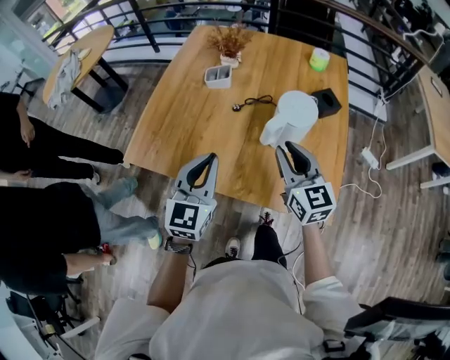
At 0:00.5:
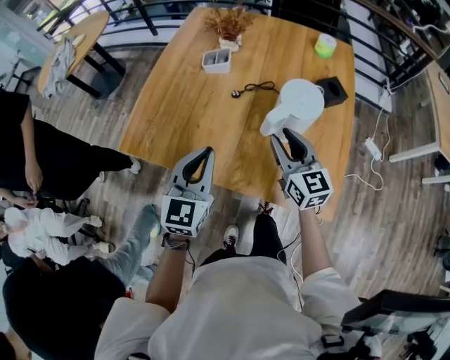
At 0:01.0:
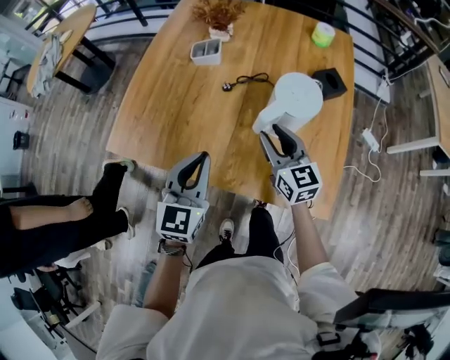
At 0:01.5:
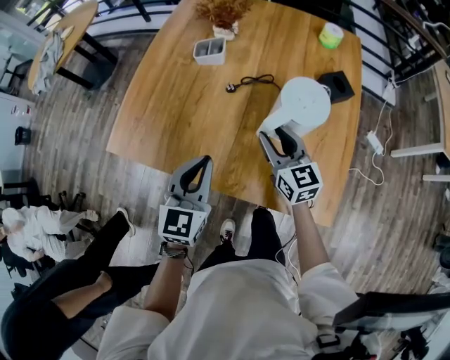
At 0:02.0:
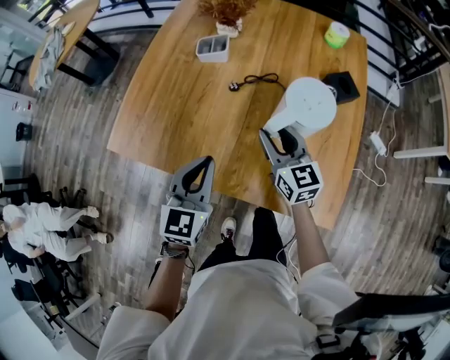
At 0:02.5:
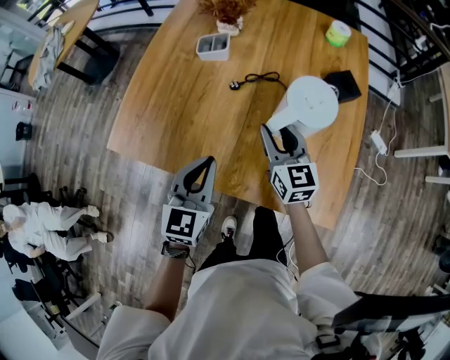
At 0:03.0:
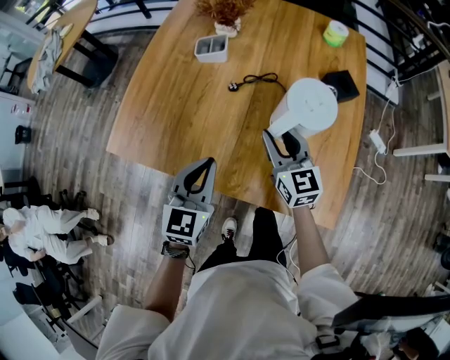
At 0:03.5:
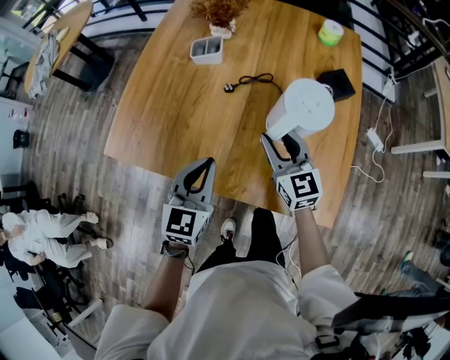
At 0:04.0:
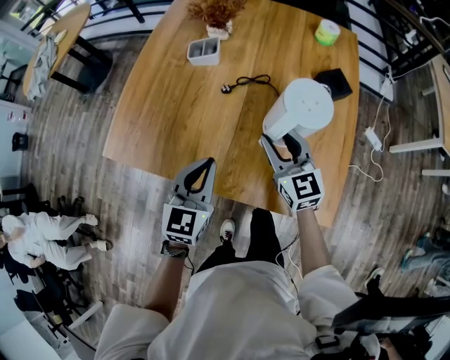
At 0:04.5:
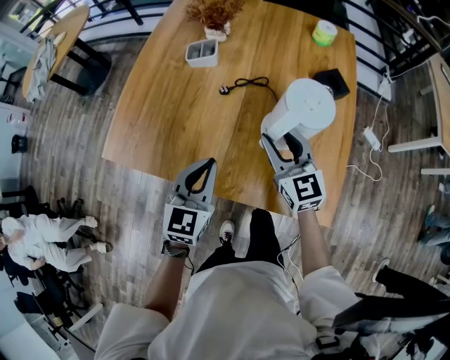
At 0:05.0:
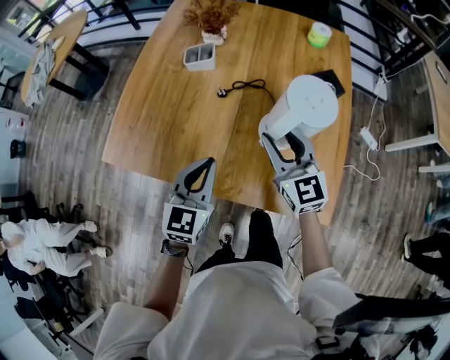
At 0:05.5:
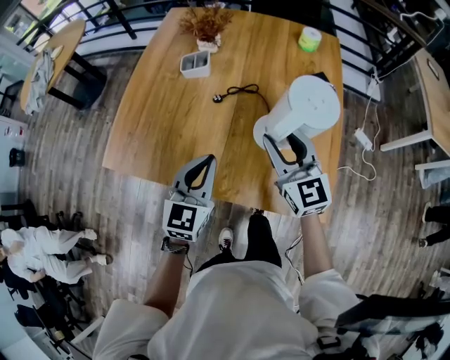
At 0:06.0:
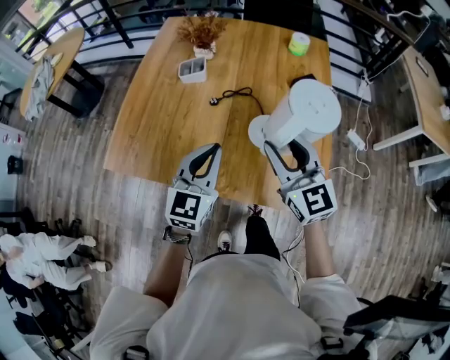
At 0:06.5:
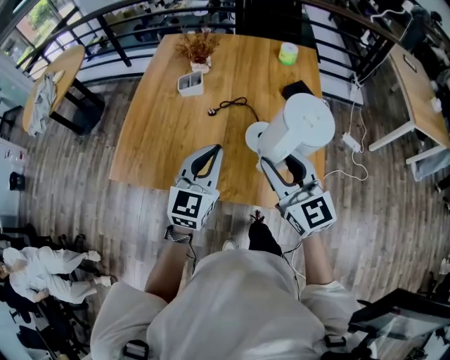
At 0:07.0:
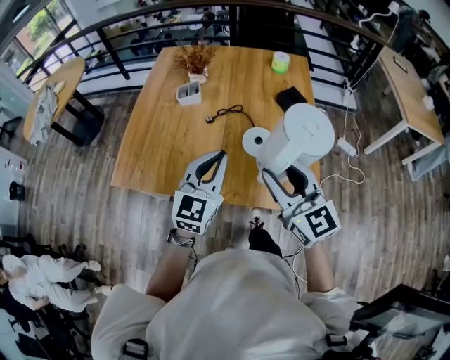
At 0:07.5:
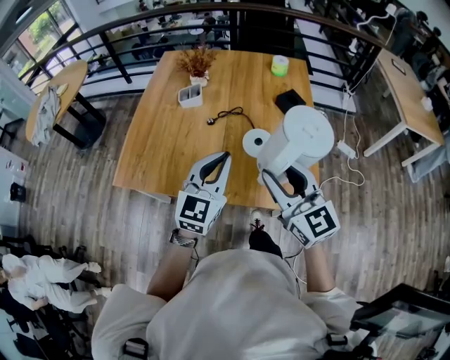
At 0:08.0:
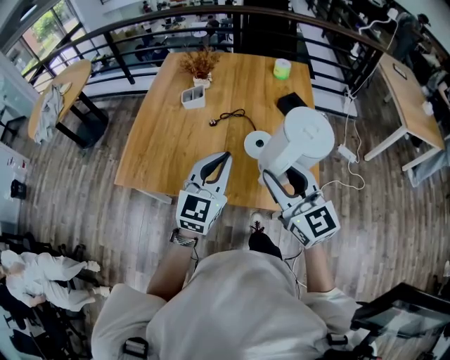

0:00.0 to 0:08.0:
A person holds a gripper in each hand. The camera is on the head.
0:00.0 to 0:02.0: The right gripper moves downward and forward, approximately 15 cm, while the left gripper moves downward, about 10 cm.
0:02.0 to 0:04.0: The grippers stay close to where they were, moving slightly.
0:04.0 to 0:06.0: The left gripper shifts some 10 cm upward, while the right gripper travels upward and backward by approximately 15 cm.
0:06.0 to 0:08.0: Both grippers move backward and upward, roughly 10 cm.

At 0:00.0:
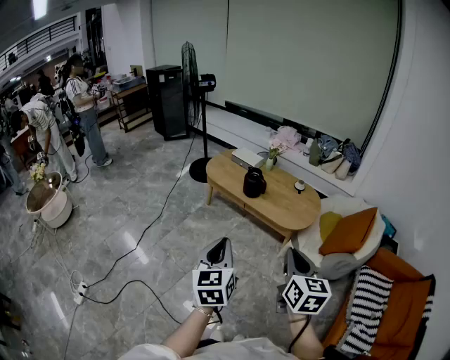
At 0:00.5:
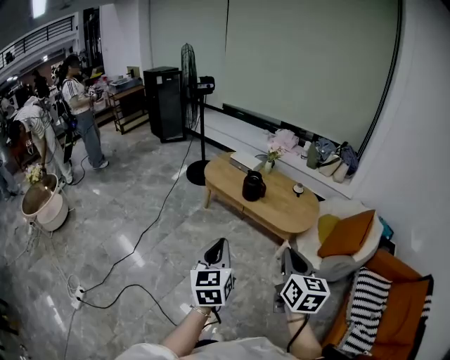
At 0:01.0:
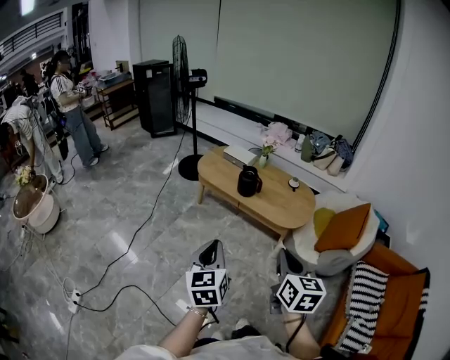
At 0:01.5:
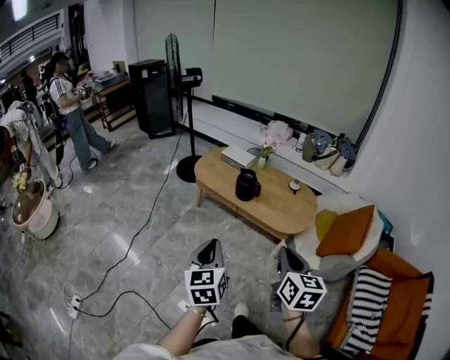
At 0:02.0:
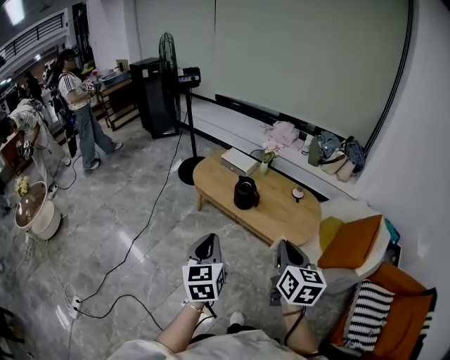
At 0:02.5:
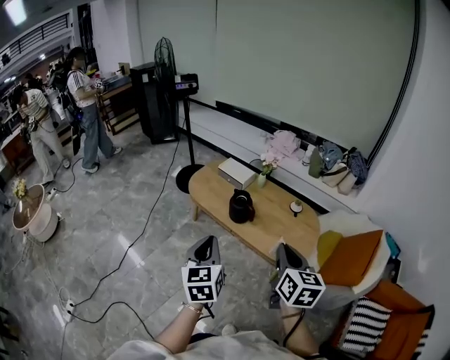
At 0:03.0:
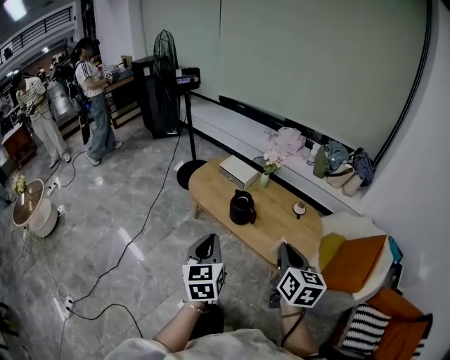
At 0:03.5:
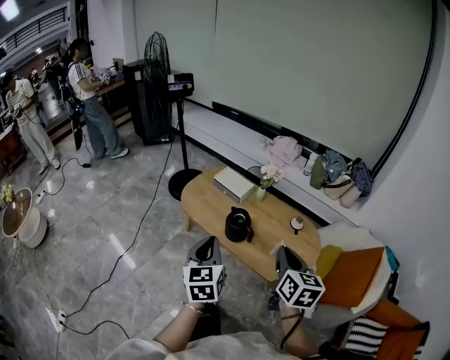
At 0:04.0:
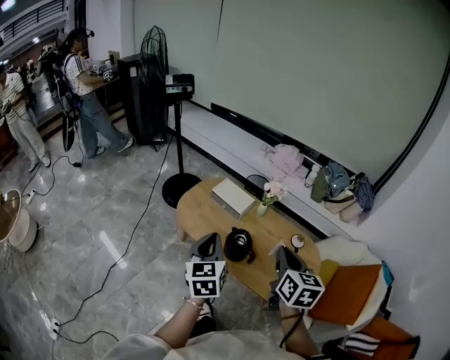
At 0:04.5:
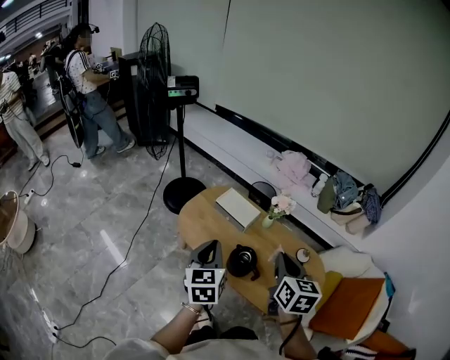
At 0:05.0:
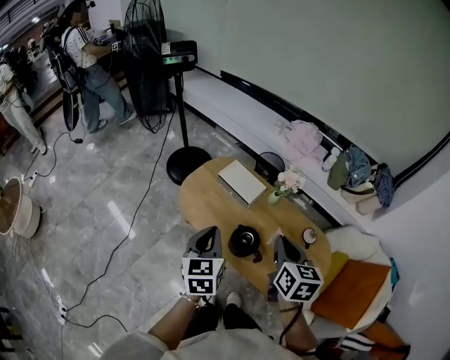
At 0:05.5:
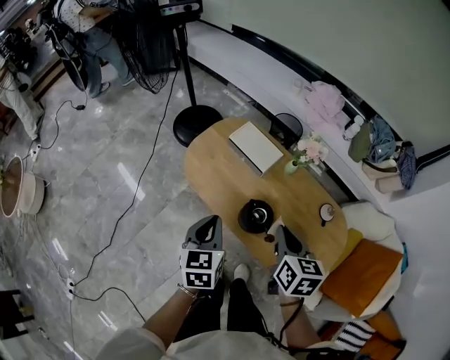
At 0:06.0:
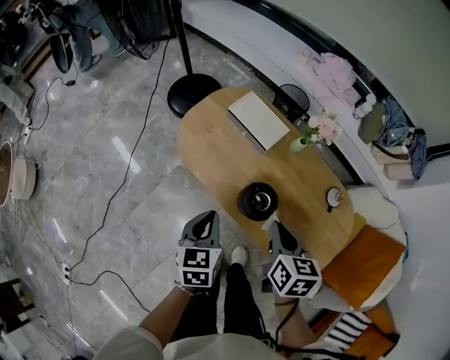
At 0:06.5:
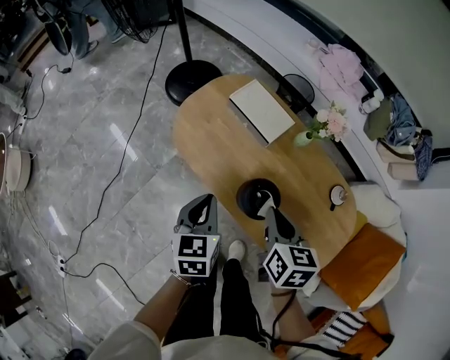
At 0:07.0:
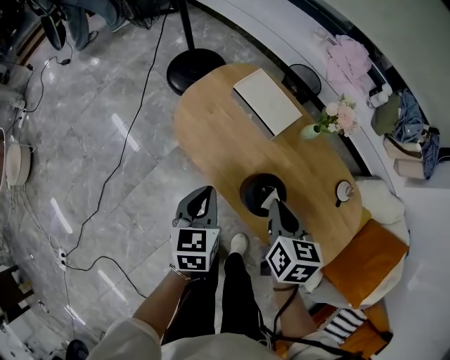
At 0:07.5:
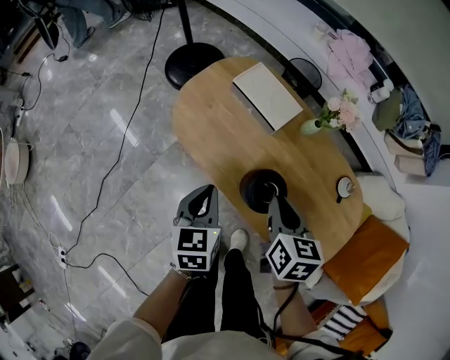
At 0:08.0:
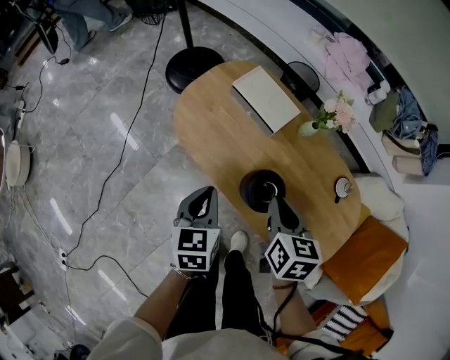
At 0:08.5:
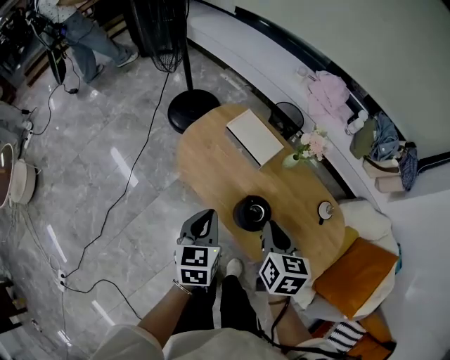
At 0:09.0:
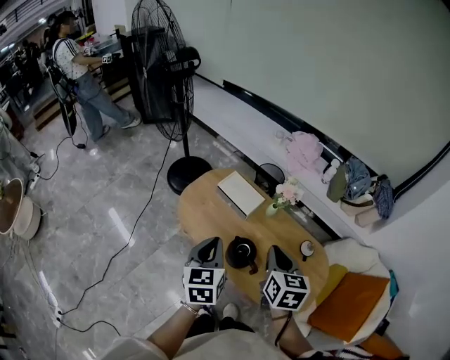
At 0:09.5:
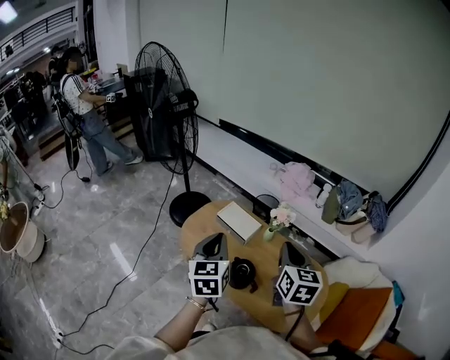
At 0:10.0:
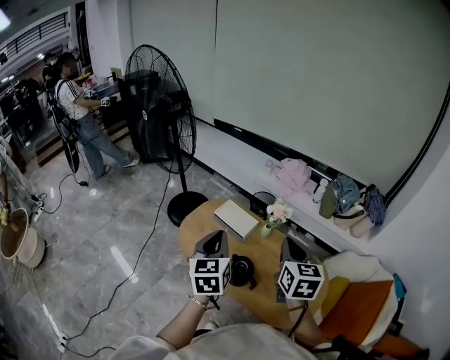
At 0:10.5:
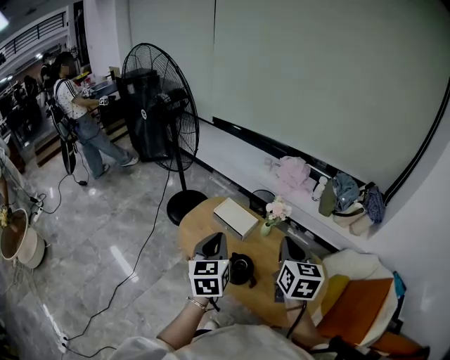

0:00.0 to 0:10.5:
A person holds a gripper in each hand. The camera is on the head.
0:00.0 to 0:02.0: Both grippers move forward, approximately 20 cm.
0:02.0 to 0:04.0: The grippers both shift forward by approximately 30 cm.
0:04.0 to 0:06.5: The left gripper shifts roughly 20 cm downward, and rotates about 20 degrees, while the right gripper travels downward and forward by some 25 cm, and rotates some 20 degrees.
0:06.5 to 0:08.5: The left gripper moves upward, roughly 5 cm.
0:08.5 to 0:10.5: The right gripper moves upward and to the right, some 20 cm, and changes its angle by roughly 20 degrees, while the left gripper moves upward, roughly 20 cm.

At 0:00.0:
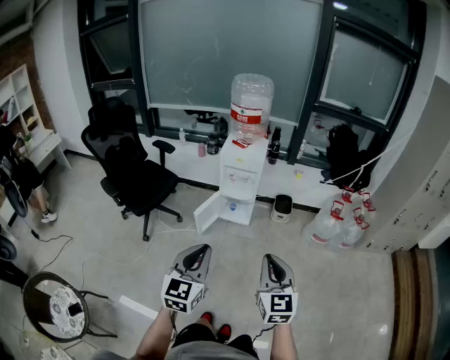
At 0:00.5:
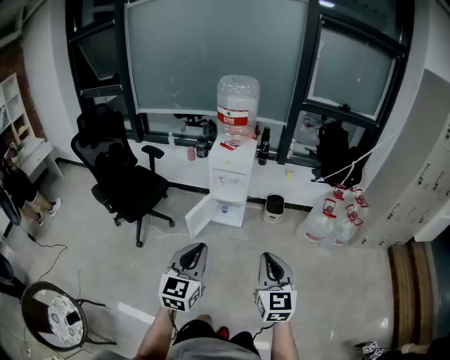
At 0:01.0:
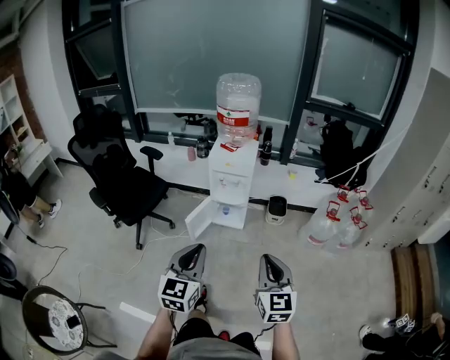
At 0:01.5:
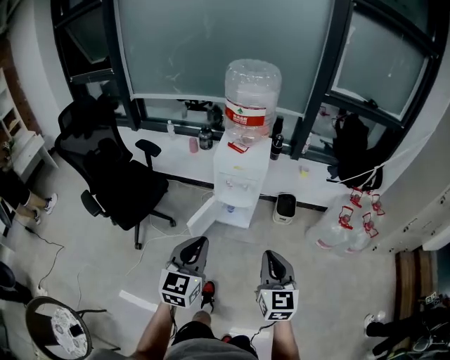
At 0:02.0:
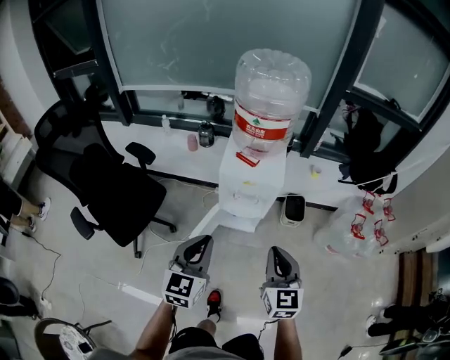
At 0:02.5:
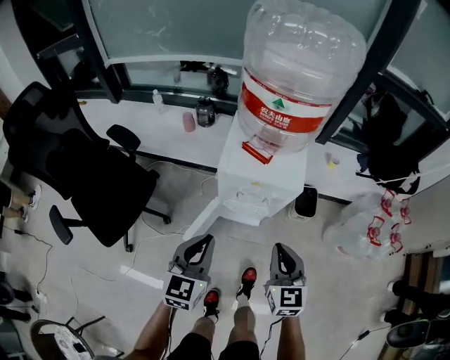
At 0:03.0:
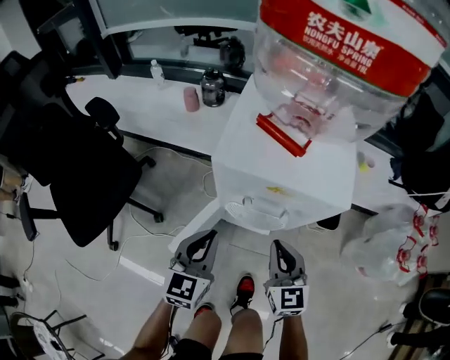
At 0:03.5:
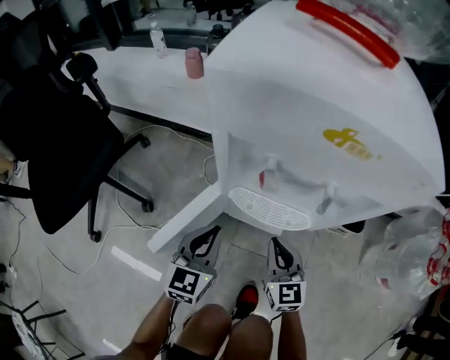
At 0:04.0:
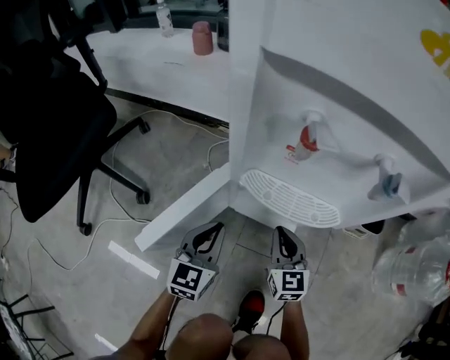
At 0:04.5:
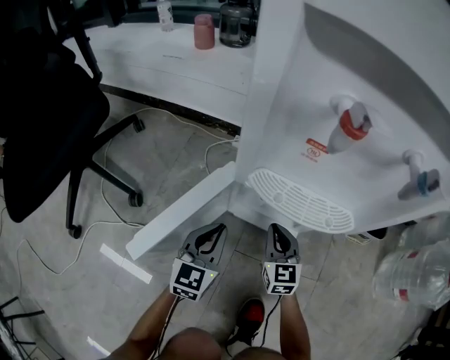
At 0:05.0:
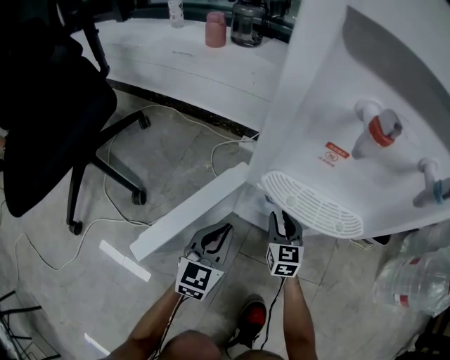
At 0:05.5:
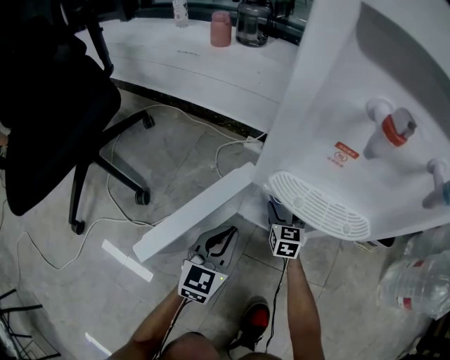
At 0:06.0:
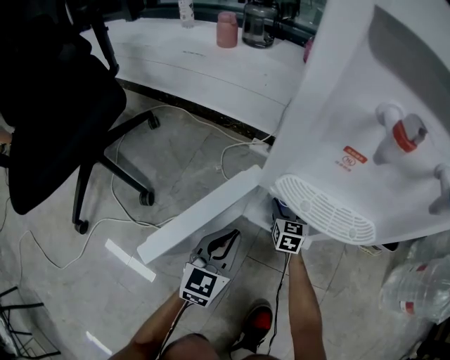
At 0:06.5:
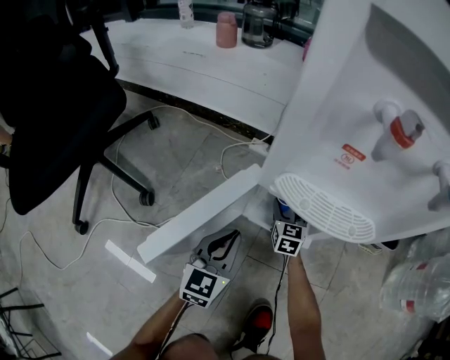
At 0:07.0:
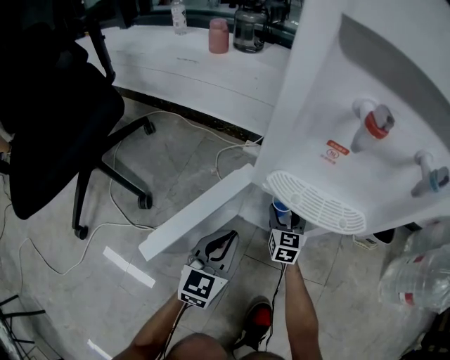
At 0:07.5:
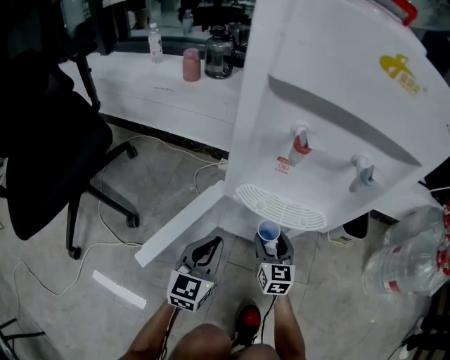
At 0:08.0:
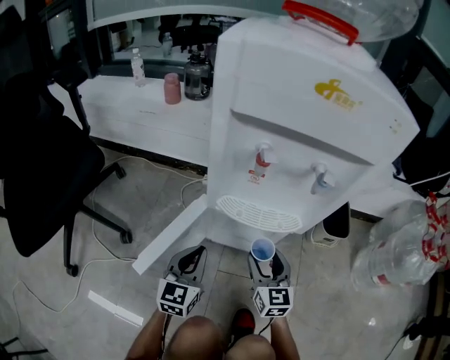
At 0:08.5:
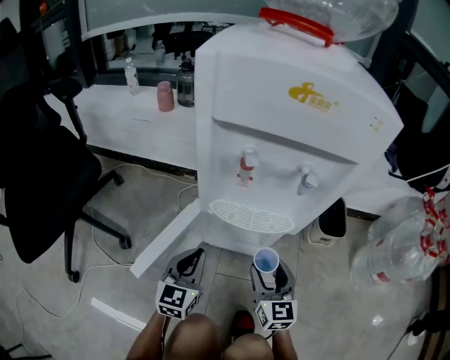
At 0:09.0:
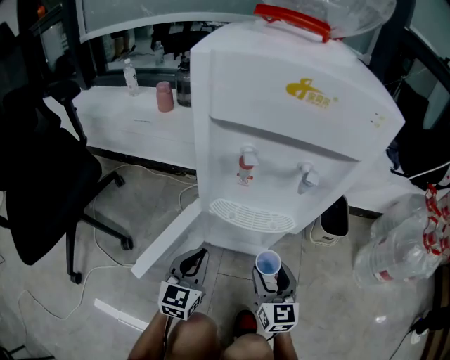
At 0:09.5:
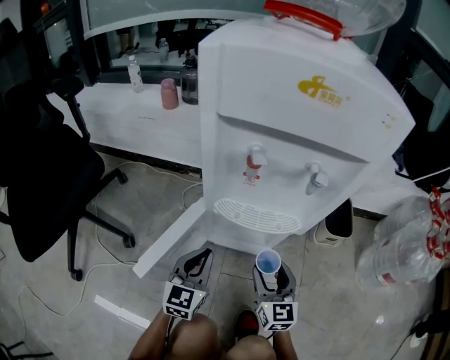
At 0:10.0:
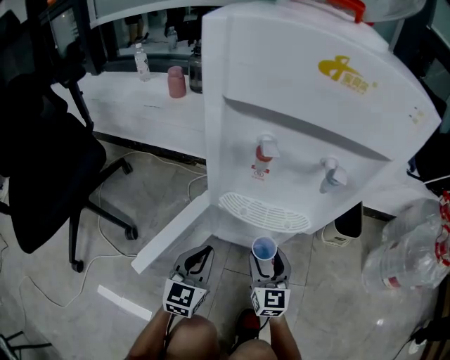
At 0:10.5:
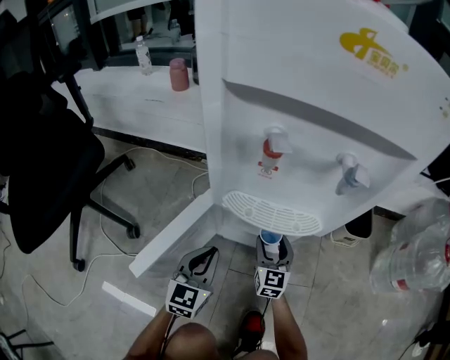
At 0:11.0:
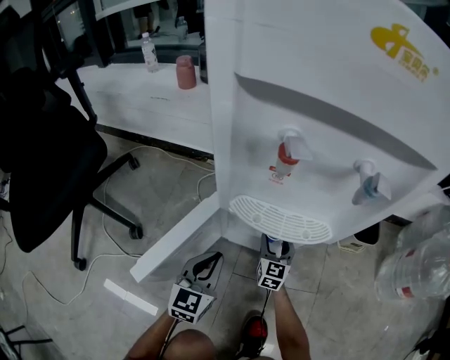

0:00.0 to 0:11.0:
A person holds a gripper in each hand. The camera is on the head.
0:00.0 to 0:02.0: The pair of grippers is taken forward, about 40 cm.
0:02.0 to 0:03.5: The right gripper shifts approximately 60 cm downward and forward. Meanwhile the left gripper moves downward, about 60 cm.
0:03.5 to 0:05.5: The left gripper is displaced downward by roughly 20 cm, while the right gripper shifts about 30 cm downward and forward, and opens up.
0:05.5 to 0:07.5: The left gripper moves upward, about 5 cm. The right gripper shifts approximately 15 cm upward and backward.
0:07.5 to 0:09.0: The right gripper shifts some 15 cm upward and backward.
0:09.0 to 0:11.0: The left gripper heads downward, covering about 10 cm, while the right gripper heads downward and forward, covering about 25 cm.
